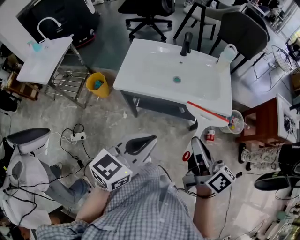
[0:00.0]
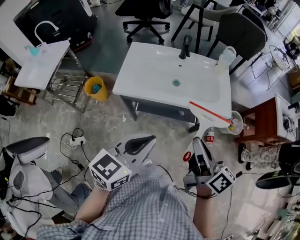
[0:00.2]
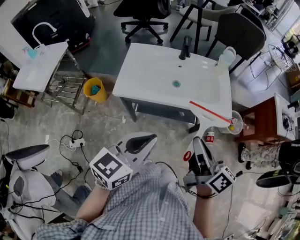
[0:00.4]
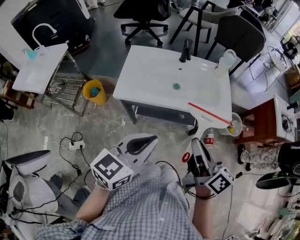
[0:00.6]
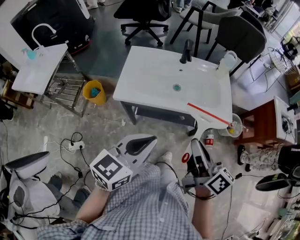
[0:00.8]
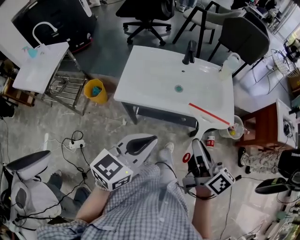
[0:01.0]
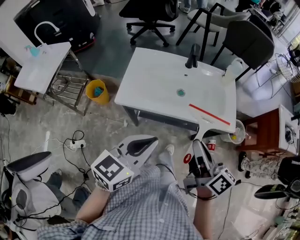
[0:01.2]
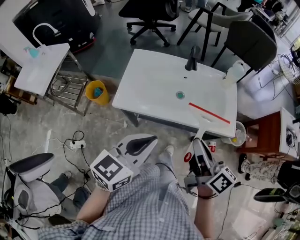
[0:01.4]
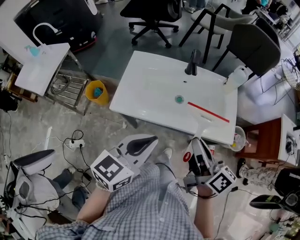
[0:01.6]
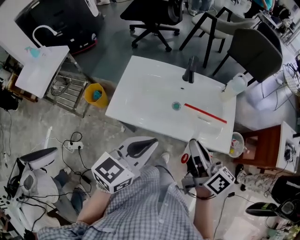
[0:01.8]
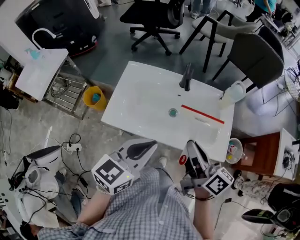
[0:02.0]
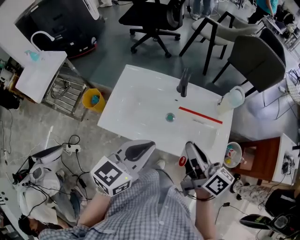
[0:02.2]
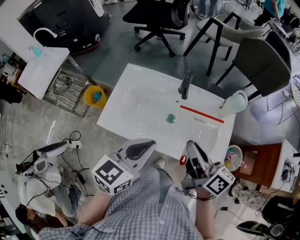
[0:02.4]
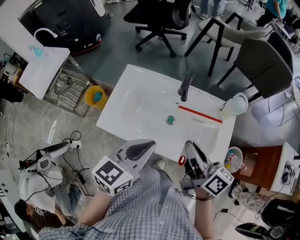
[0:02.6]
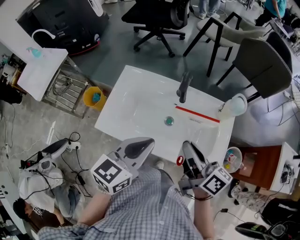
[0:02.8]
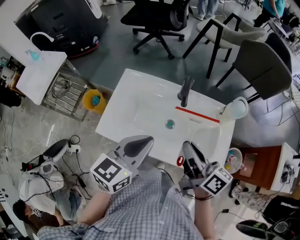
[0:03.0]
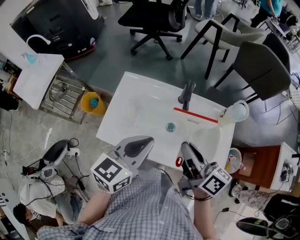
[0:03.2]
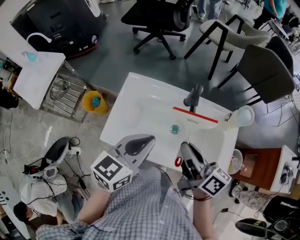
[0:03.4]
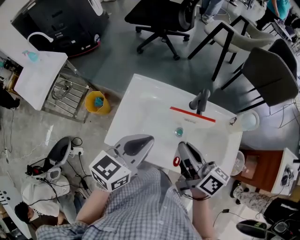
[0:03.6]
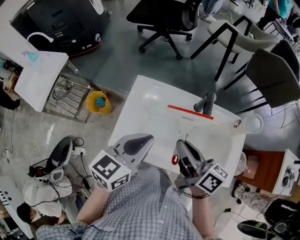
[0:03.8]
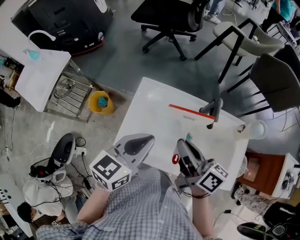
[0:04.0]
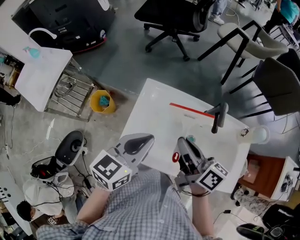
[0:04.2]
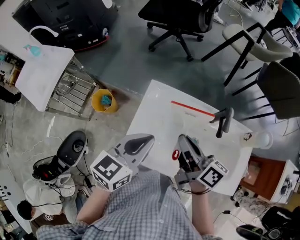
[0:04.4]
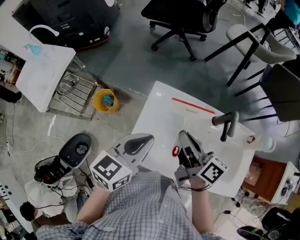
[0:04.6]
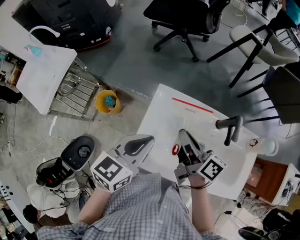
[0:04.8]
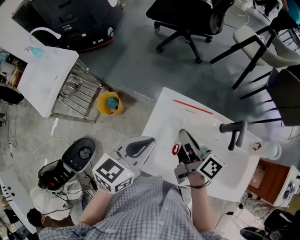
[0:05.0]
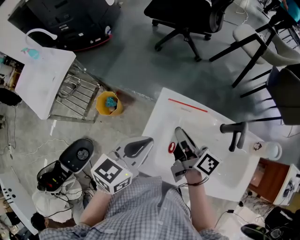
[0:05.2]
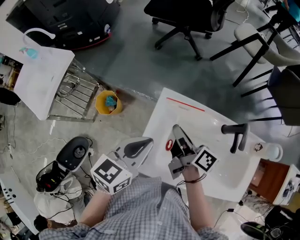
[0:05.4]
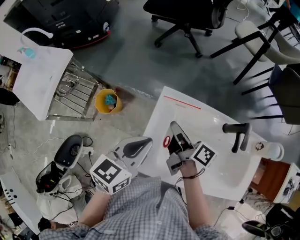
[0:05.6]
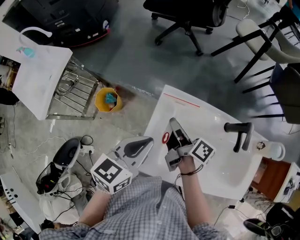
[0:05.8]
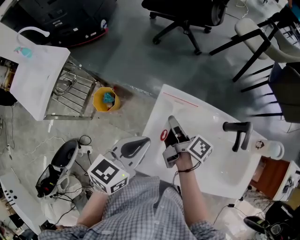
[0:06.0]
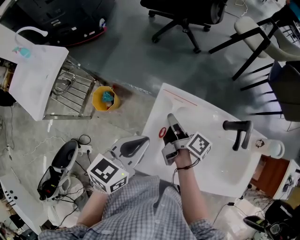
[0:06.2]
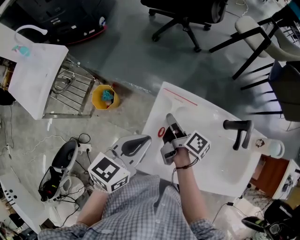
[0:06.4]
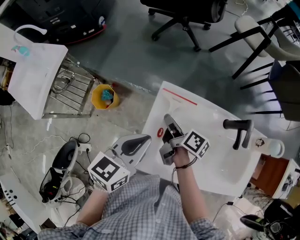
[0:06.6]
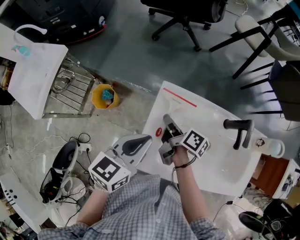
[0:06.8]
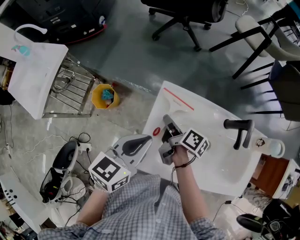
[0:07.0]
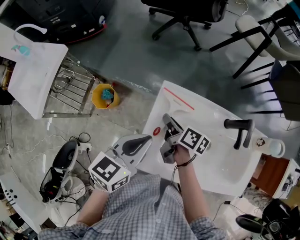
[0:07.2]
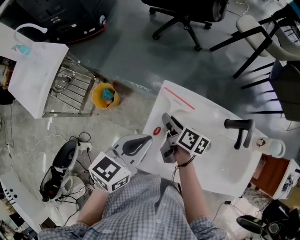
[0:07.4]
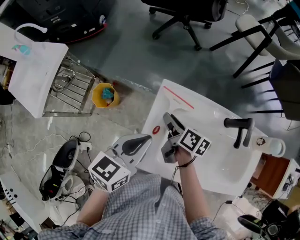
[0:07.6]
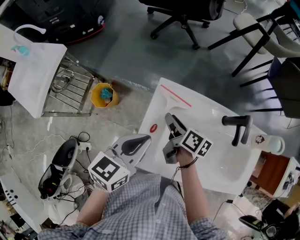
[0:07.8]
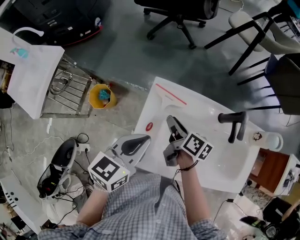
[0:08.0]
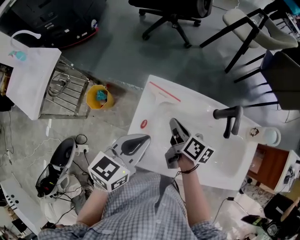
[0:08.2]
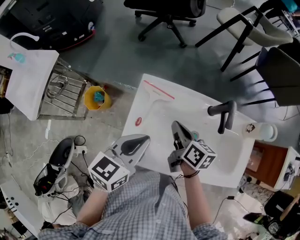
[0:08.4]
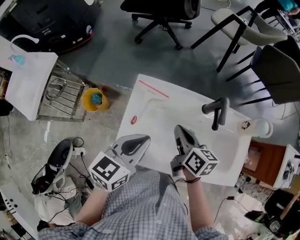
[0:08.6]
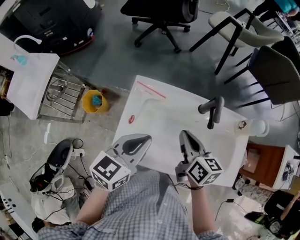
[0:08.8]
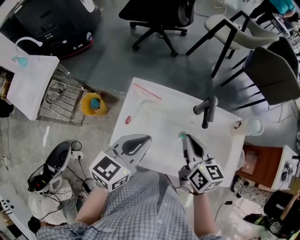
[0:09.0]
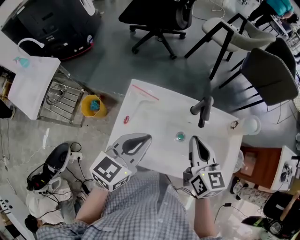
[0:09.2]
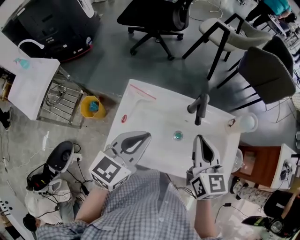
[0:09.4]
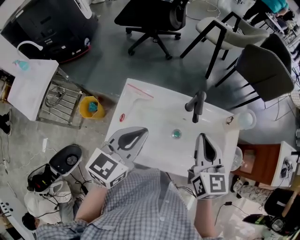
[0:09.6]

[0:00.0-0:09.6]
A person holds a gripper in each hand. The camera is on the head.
0:00.0 to 0:01.6: The two grippers go roughly 15 cm forward.
0:01.6 to 0:03.2: The grippers both shift forward by roughly 15 cm.
0:03.2 to 0:04.8: Both grippers move to the left and forward, roughly 25 cm.
0:04.8 to 0:06.4: The left gripper ends up approximately 5 cm from where it was. The right gripper shifts about 15 cm downward, to the left and forward, and rotates roughly 20 degrees.
0:08.0 to 0:09.6: The left gripper heads to the right and upward, covering some 15 cm. The right gripper is displaced to the right and upward by about 30 cm, rolls counterclockwise, seen from behind, by some 50 degrees, and closes its fingers.

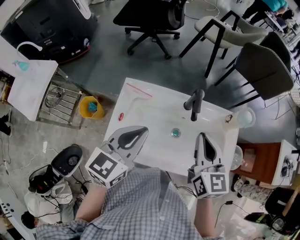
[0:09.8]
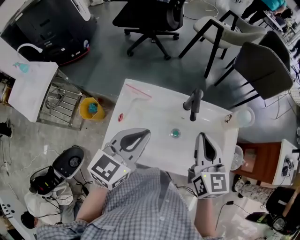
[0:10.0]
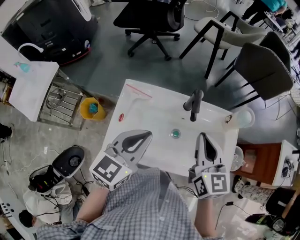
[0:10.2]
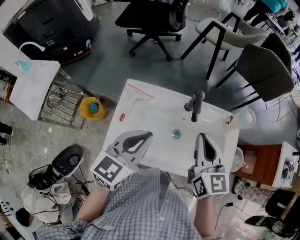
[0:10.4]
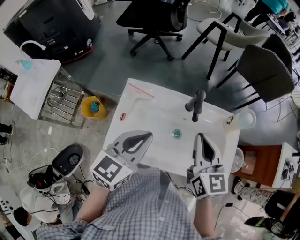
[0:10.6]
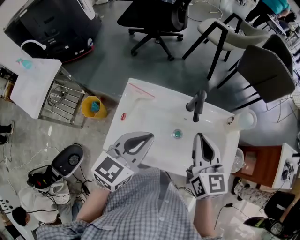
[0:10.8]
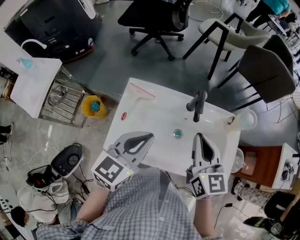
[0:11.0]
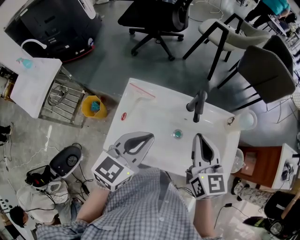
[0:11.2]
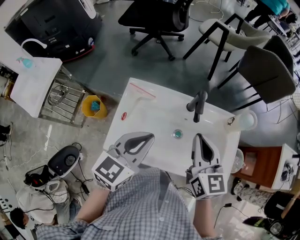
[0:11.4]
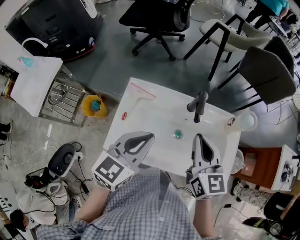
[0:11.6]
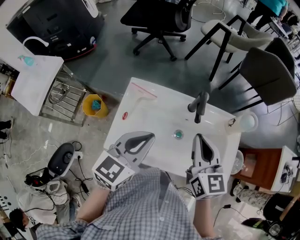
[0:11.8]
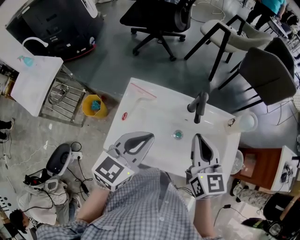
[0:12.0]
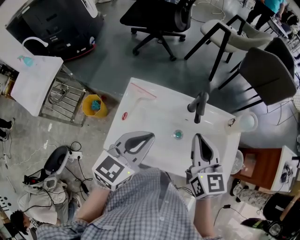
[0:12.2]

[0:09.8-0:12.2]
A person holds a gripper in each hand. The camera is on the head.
0:09.8 to 0:11.0: There are only small adjustments of the grippers.
0:11.0 to 0:12.2: Both grippers stay put.

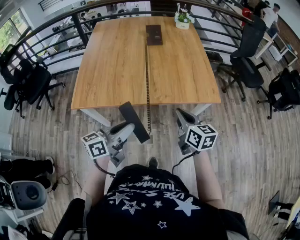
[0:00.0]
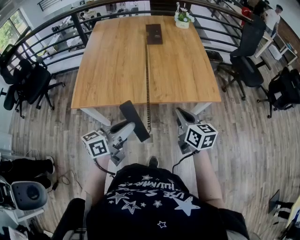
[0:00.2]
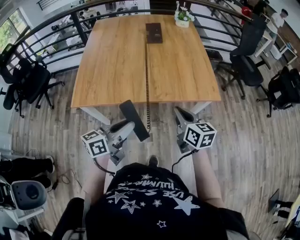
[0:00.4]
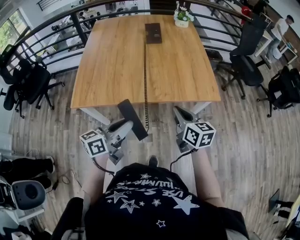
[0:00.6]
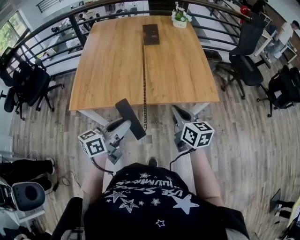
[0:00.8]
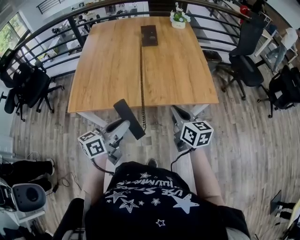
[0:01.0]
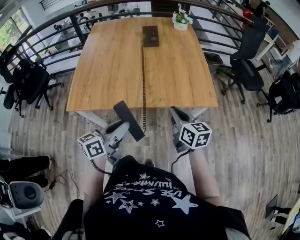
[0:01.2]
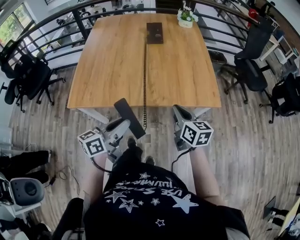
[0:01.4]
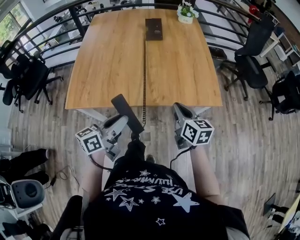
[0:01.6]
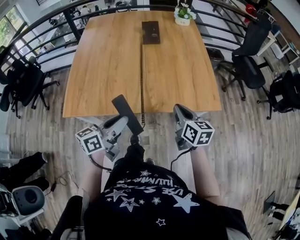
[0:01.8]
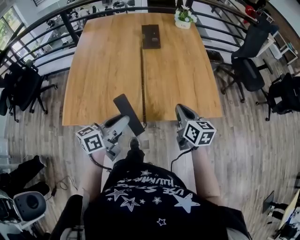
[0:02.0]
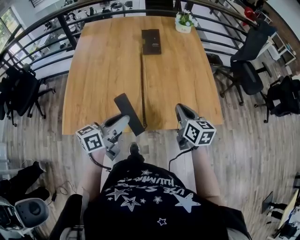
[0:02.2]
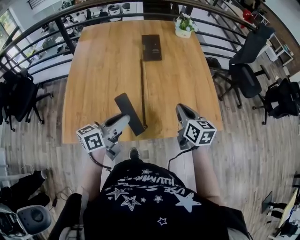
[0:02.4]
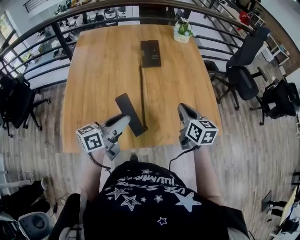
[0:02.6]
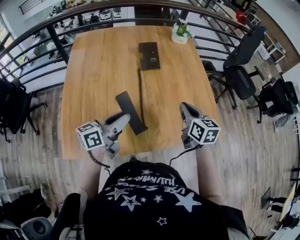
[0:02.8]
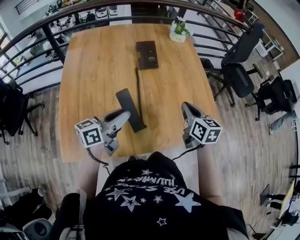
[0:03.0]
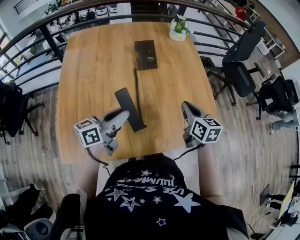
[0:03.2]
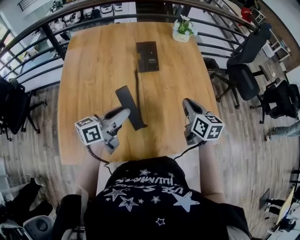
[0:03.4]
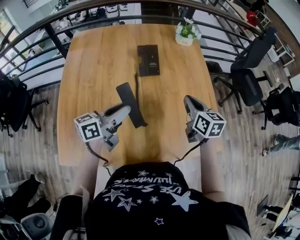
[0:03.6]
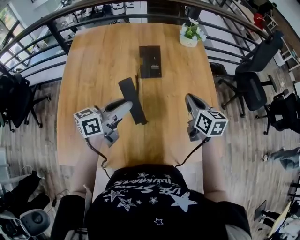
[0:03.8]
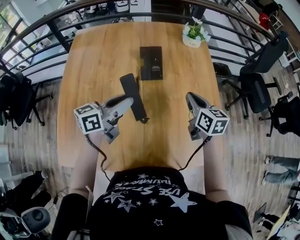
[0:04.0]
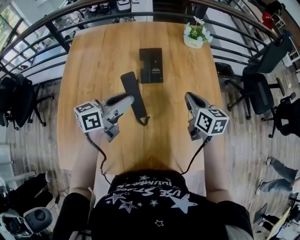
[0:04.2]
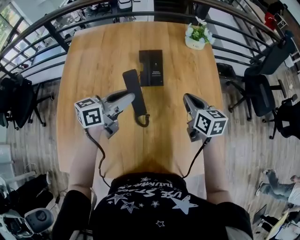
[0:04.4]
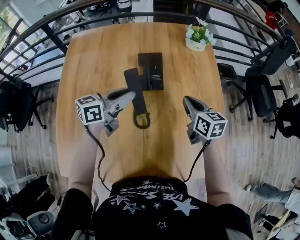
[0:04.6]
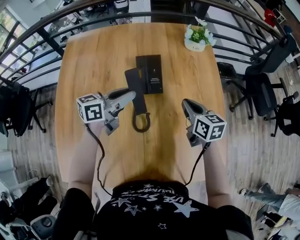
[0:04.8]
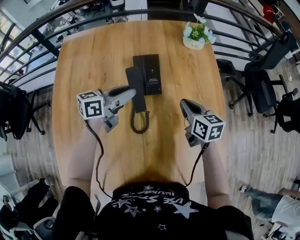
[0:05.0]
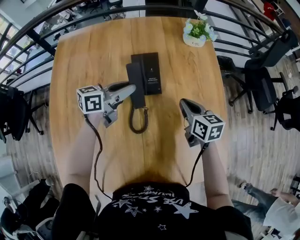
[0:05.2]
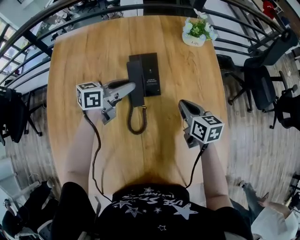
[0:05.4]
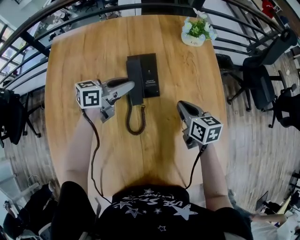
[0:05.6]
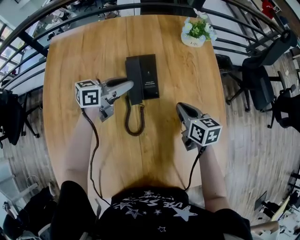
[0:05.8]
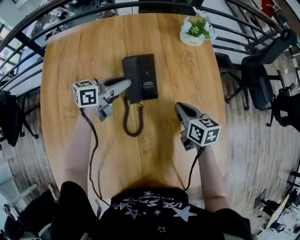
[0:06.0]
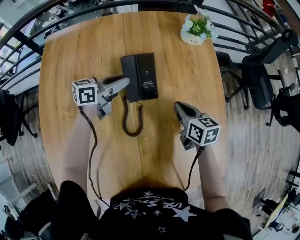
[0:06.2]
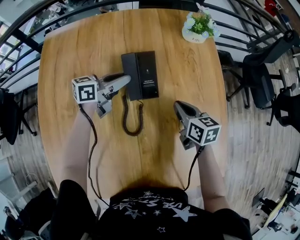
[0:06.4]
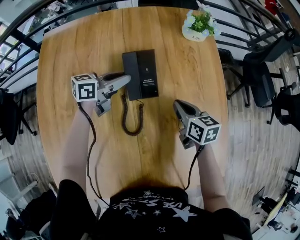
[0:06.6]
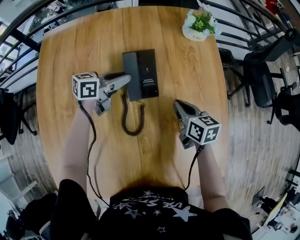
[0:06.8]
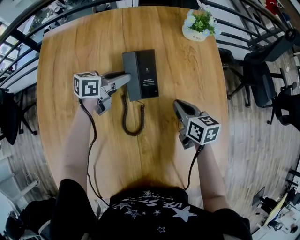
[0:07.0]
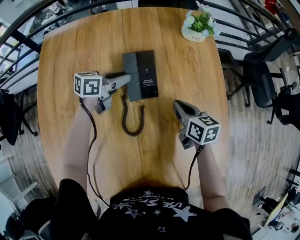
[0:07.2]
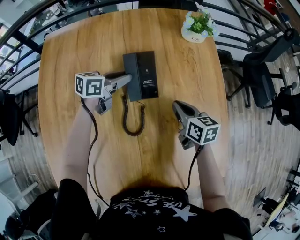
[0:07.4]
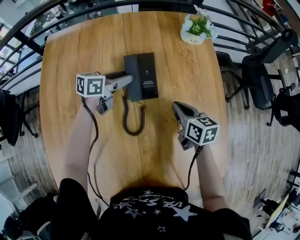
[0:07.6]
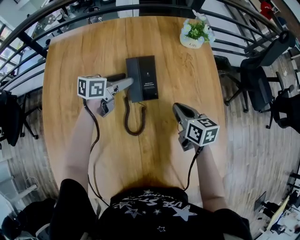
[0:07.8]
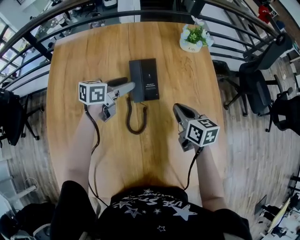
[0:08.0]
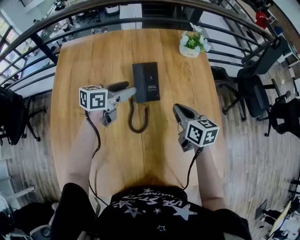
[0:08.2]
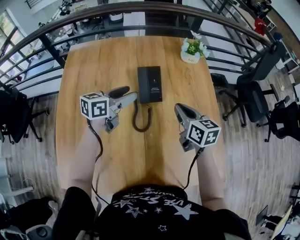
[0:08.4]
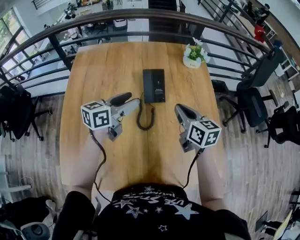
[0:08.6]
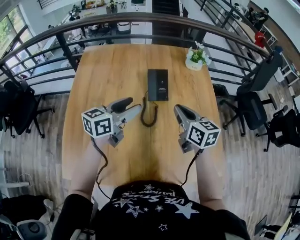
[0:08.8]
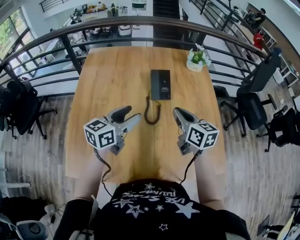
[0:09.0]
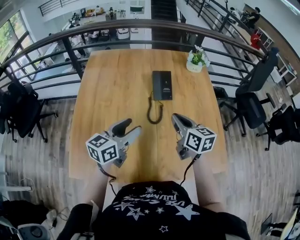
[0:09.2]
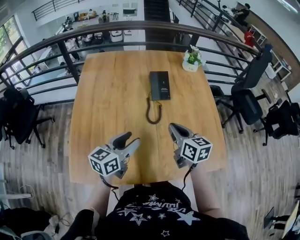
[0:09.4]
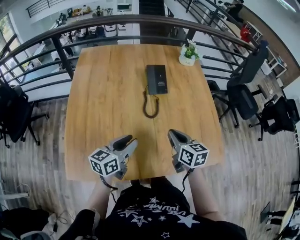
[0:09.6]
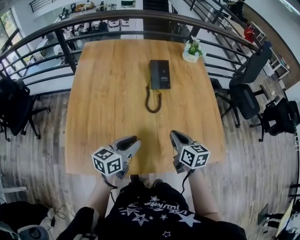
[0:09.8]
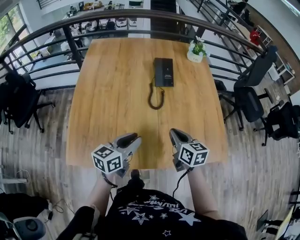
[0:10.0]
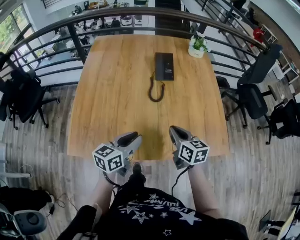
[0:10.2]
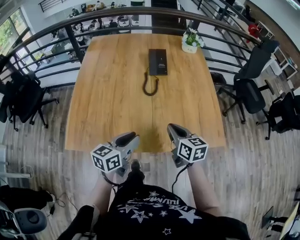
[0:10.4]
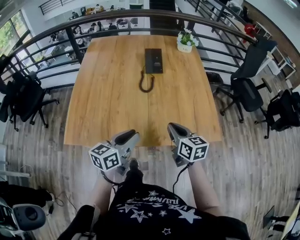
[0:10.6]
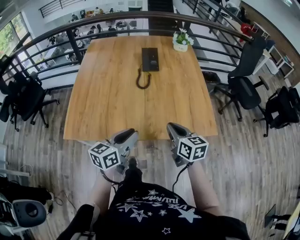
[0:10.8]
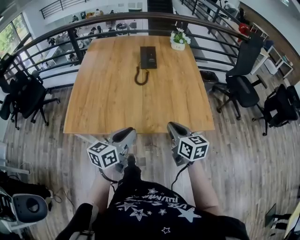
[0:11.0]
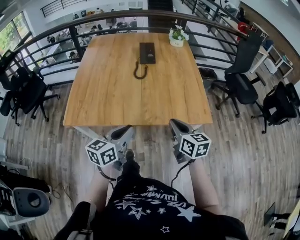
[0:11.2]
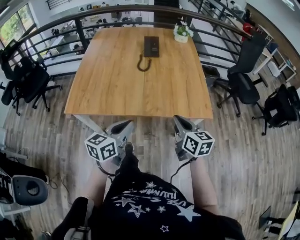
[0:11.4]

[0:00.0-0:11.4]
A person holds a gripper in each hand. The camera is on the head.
0:00.0 to 0:01.4: The right gripper travels forward by some 5 cm.
0:01.4 to 0:02.8: The right gripper moves forward, roughly 25 cm. Meanwhile the left gripper shifts some 30 cm forward and to the left.
0:02.8 to 0:04.2: Both grippers move forward, some 20 cm.
0:04.2 to 0:05.6: The left gripper goes some 20 cm forward and downward. Meanwhile the right gripper is displaced downward and forward by about 10 cm.
0:05.6 to 0:07.2: The left gripper travels downward by some 5 cm.
0:07.2 to 0:08.6: Both grippers travel together upward and backward, roughly 20 cm. The left gripper turns by approximately 20 degrees, and opens.
0:08.6 to 0:10.0: Both grippers travel together backward, about 25 cm. The left gripper closes up.
0:10.0 to 0:11.4: The grippers both shift backward and to the right by some 30 cm. The left gripper closes its fingers.
